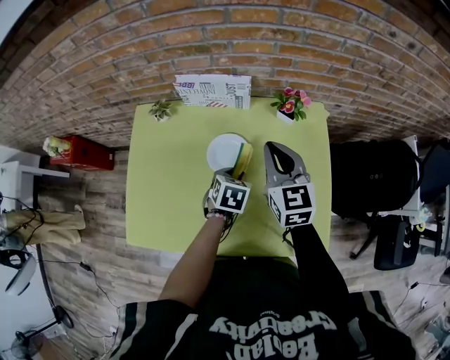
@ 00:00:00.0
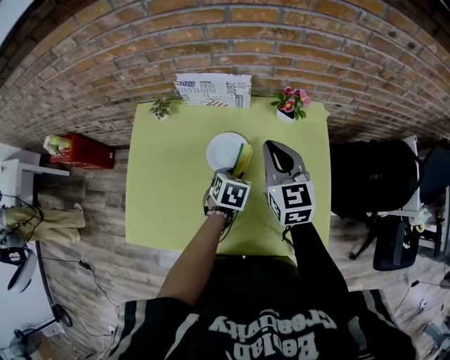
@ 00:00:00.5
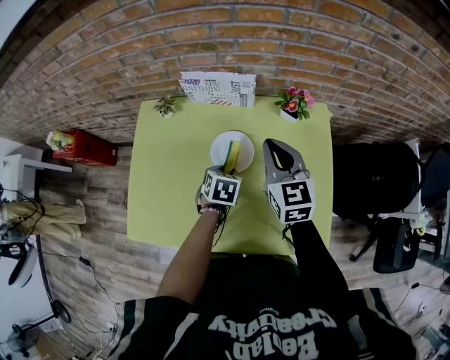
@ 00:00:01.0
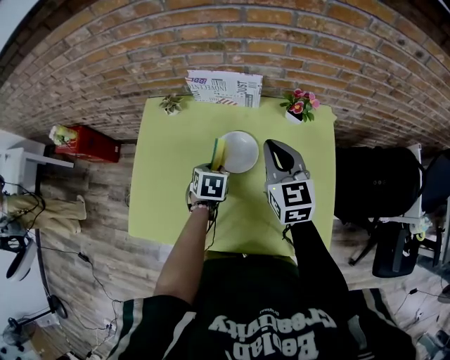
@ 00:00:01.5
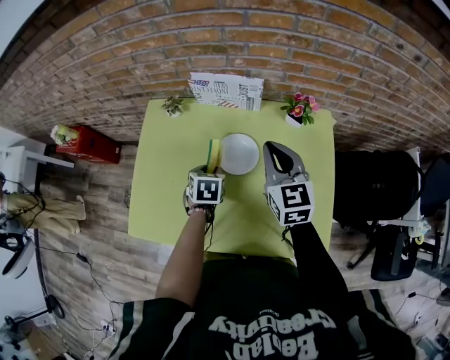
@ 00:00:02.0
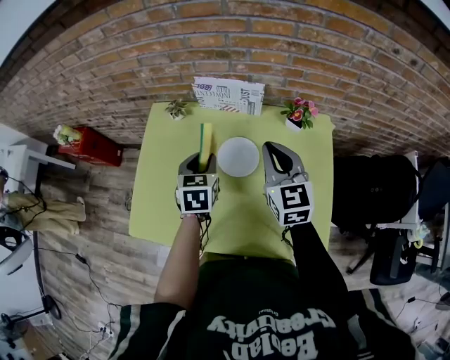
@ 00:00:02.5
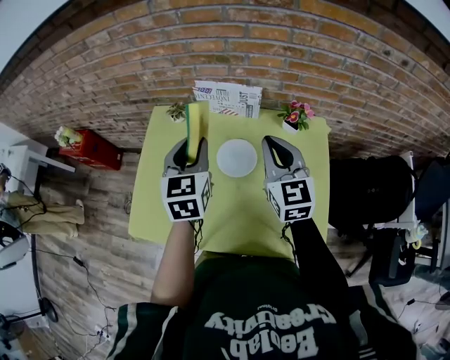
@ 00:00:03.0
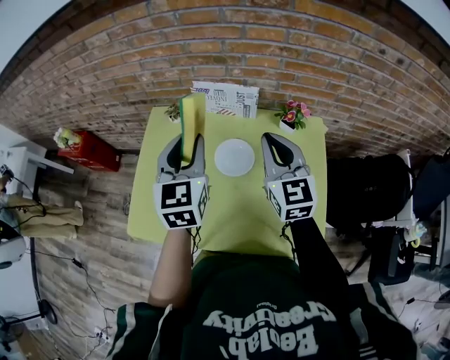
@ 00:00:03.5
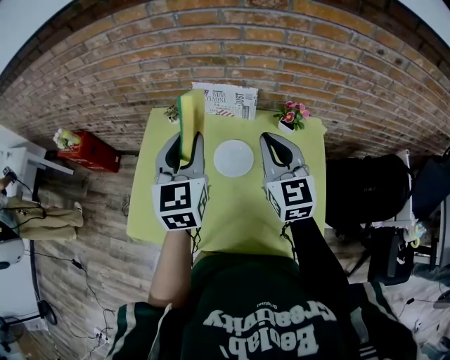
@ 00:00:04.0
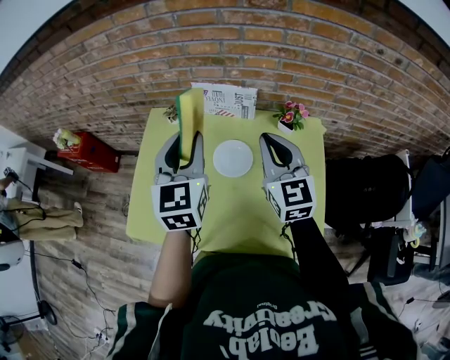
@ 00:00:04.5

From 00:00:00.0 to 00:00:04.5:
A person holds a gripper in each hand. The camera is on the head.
From 00:00:00.0 to 00:00:02.0: The left gripper shifts about 10 cm to the left.
From 00:00:02.0 to 00:00:04.5: The left gripper goes approximately 30 cm upward, and angles its fingers upward, by roughly 50 degrees. The right gripper heads upward, covering approximately 10 cm.

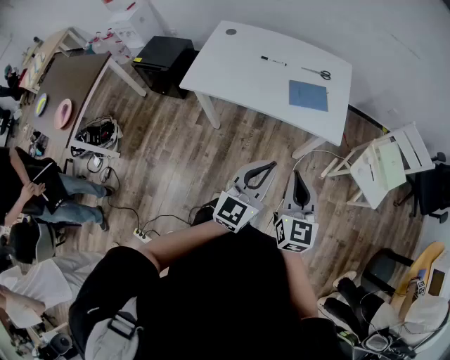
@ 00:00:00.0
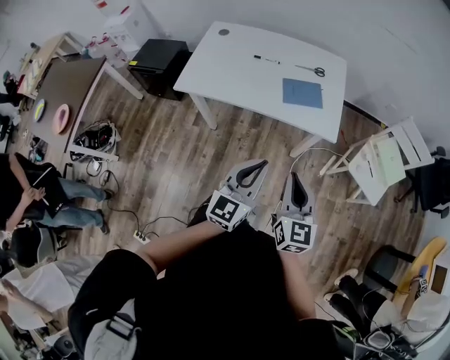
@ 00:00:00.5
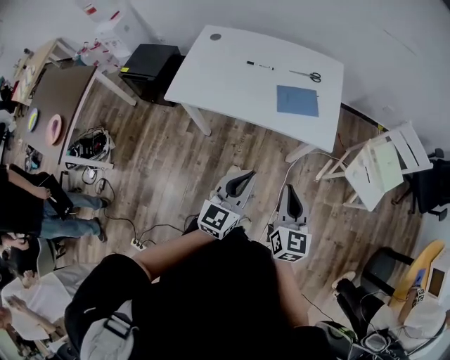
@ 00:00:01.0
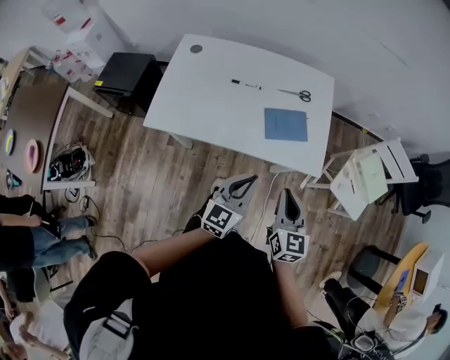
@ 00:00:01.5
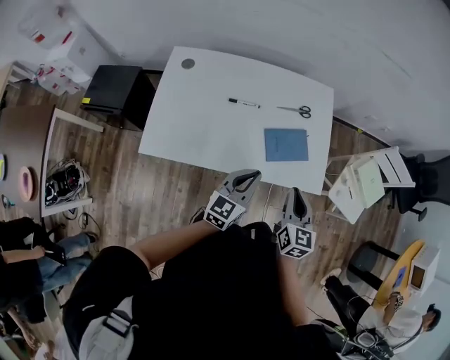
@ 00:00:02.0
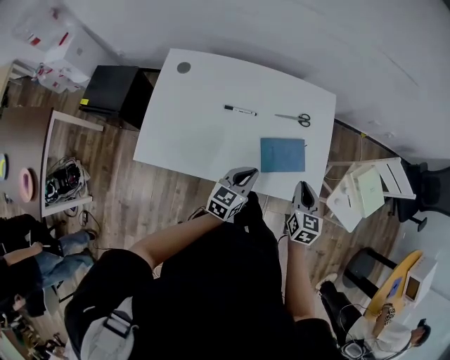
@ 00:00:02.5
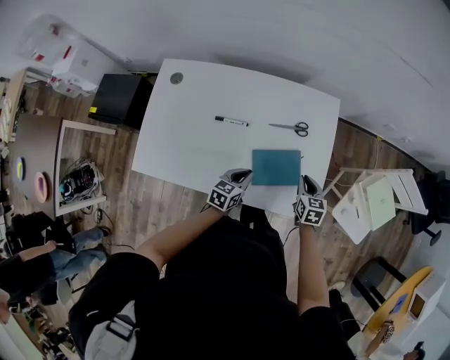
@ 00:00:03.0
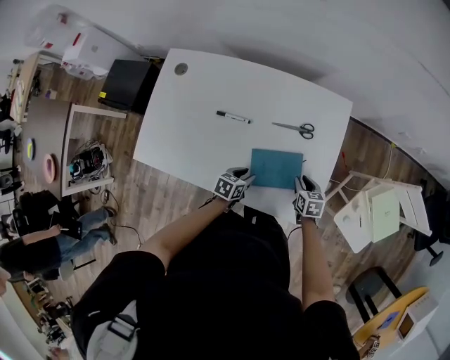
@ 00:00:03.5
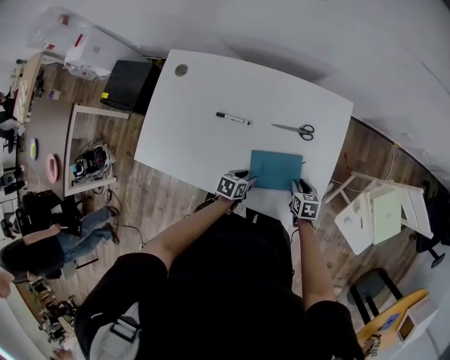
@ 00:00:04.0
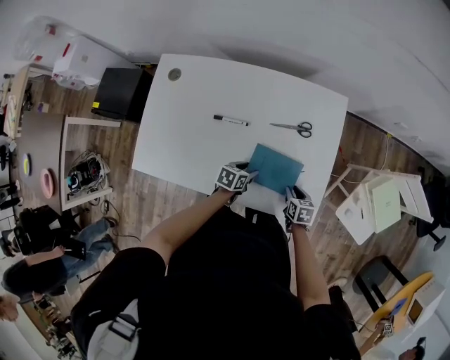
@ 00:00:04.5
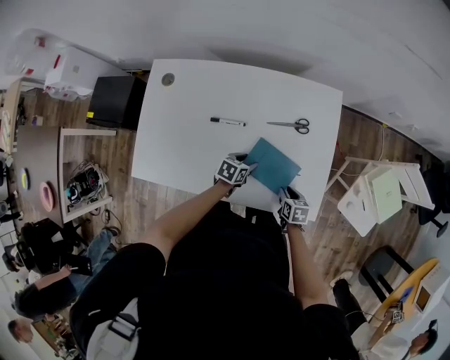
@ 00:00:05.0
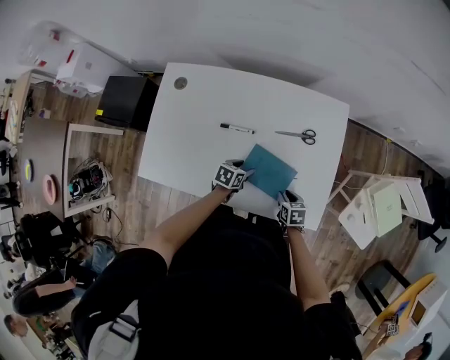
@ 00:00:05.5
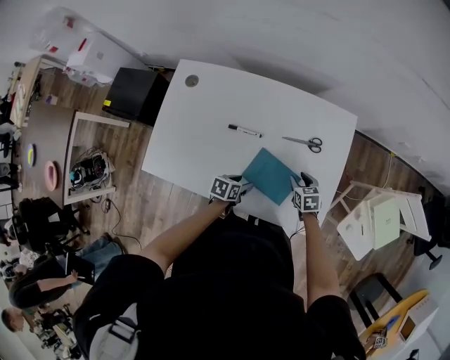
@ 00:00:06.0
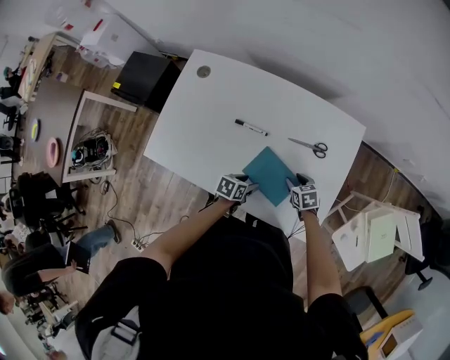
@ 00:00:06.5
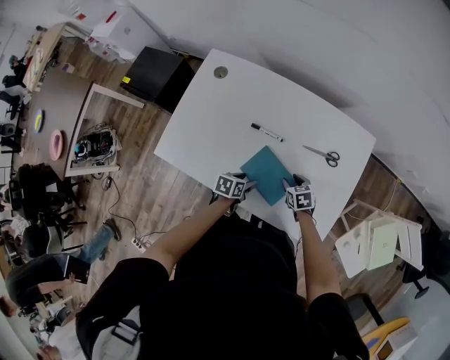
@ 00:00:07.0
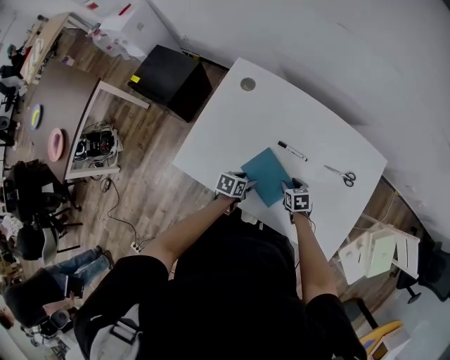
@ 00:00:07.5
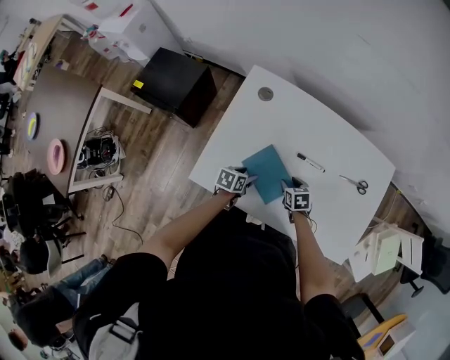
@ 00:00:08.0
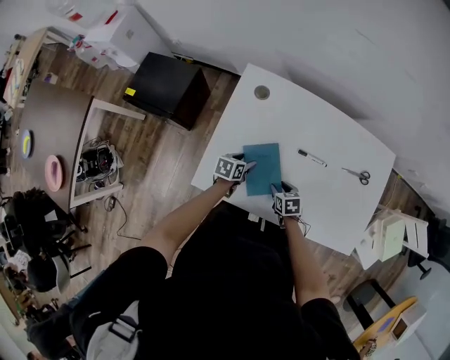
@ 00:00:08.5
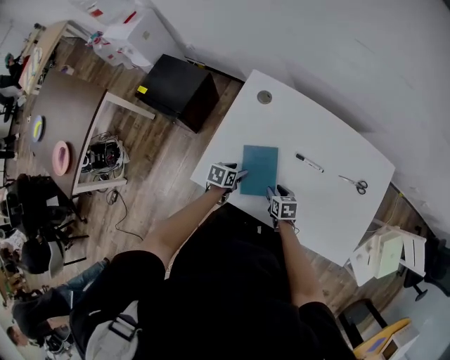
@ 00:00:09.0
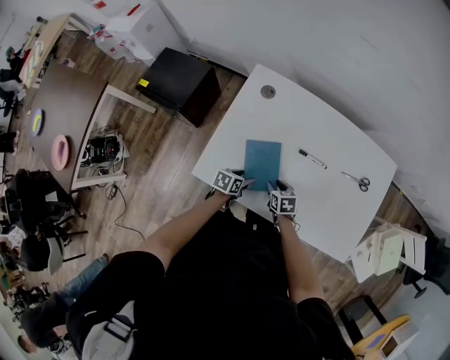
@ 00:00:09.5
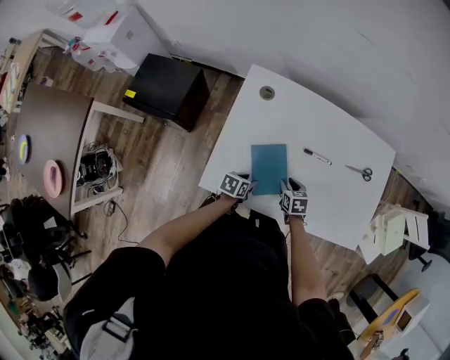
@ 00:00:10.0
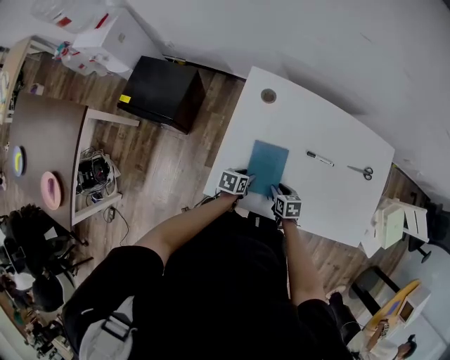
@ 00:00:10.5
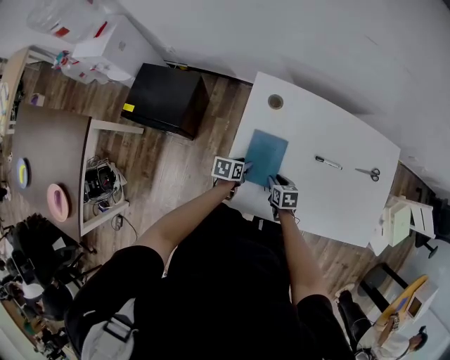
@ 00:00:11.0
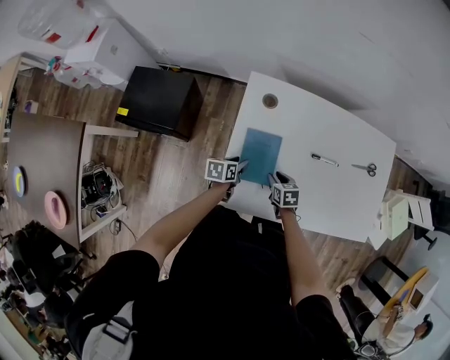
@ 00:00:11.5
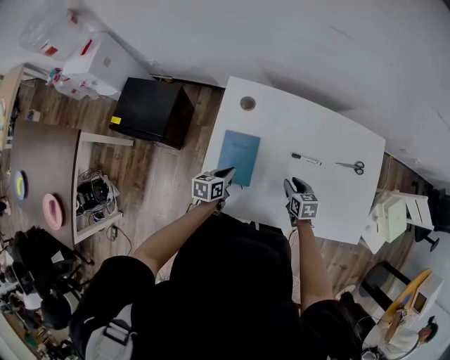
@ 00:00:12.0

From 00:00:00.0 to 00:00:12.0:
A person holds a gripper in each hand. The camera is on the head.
From 00:00:00.0 to 00:00:02.0: The grippers both shift forward by about 30 cm.
From 00:00:02.0 to 00:00:04.0: Both grippers travel together downward and forward, some 35 cm. The right gripper tilts its fingers about 30 degrees downward, while the left gripper points its fingers about 40 degrees further downward, and opens.
From 00:00:04.0 to 00:00:06.0: Both grippers travel together to the left, roughly 5 cm.
From 00:00:06.0 to 00:00:08.0: Both grippers travel together to the left, roughly 30 cm.
From 00:00:08.0 to 00:00:10.0: The right gripper ends up roughly 5 cm from where it was.
From 00:00:10.0 to 00:00:12.0: The left gripper heads to the left and forward, covering roughly 10 cm, and closes its fingers; the right gripper heads upward, covering about 5 cm, and travels to the left and back again, some 10 cm each way.

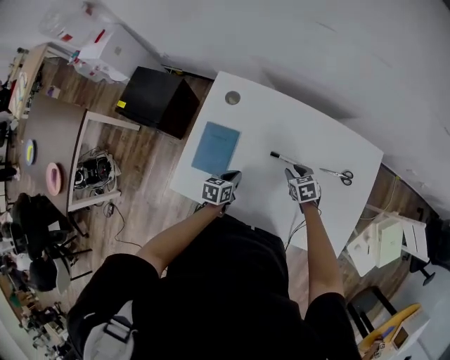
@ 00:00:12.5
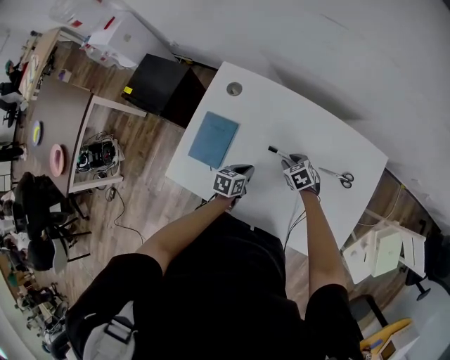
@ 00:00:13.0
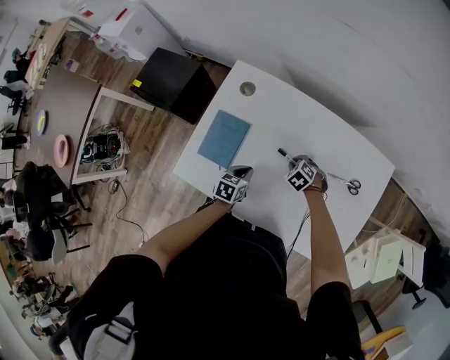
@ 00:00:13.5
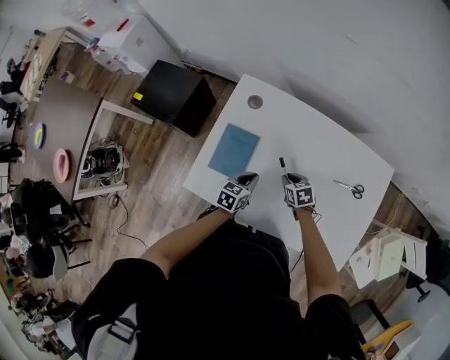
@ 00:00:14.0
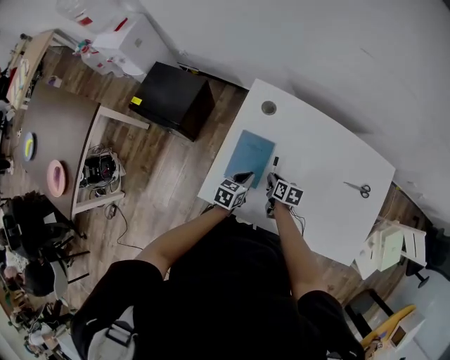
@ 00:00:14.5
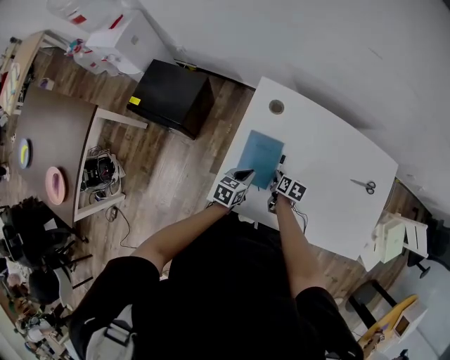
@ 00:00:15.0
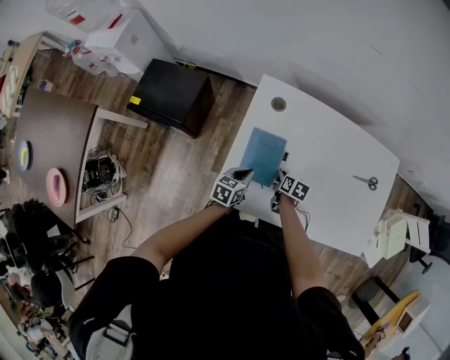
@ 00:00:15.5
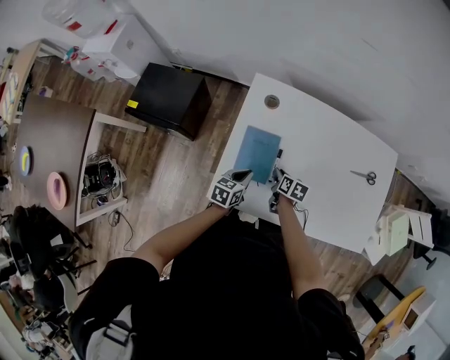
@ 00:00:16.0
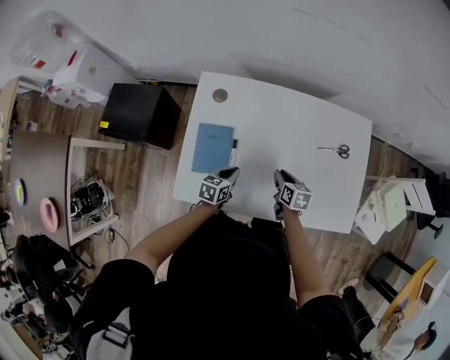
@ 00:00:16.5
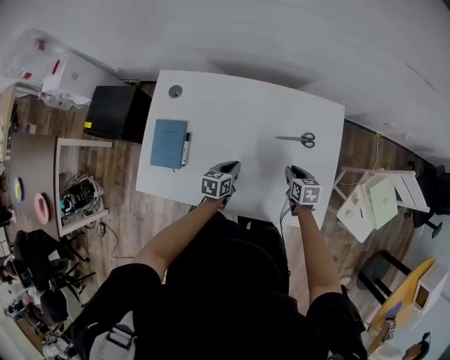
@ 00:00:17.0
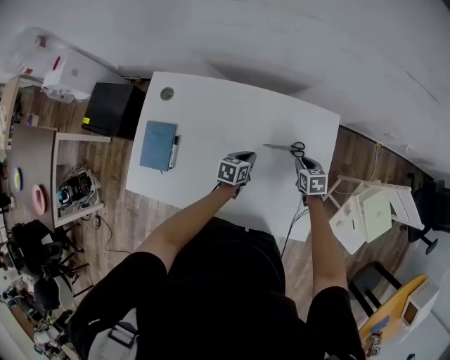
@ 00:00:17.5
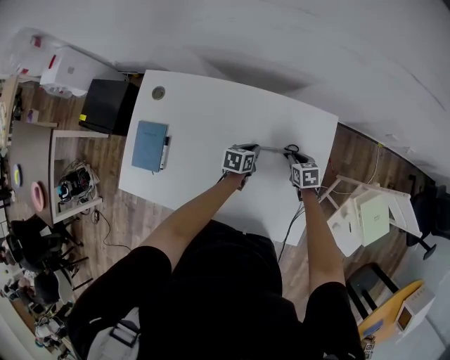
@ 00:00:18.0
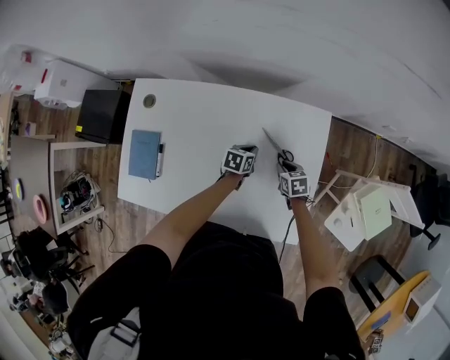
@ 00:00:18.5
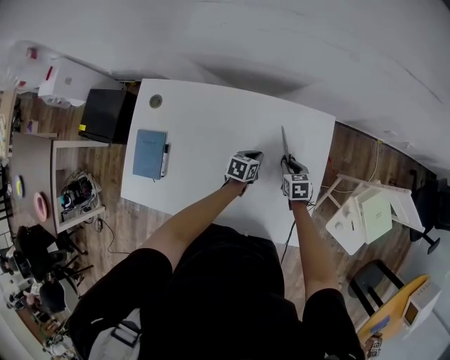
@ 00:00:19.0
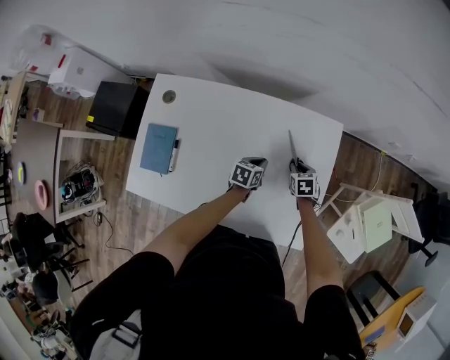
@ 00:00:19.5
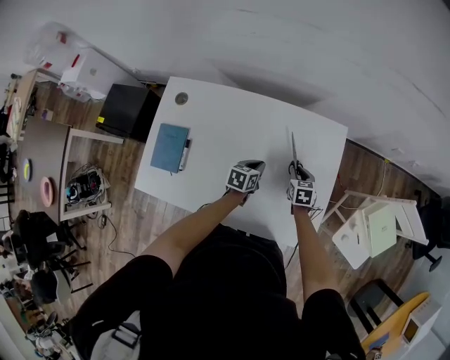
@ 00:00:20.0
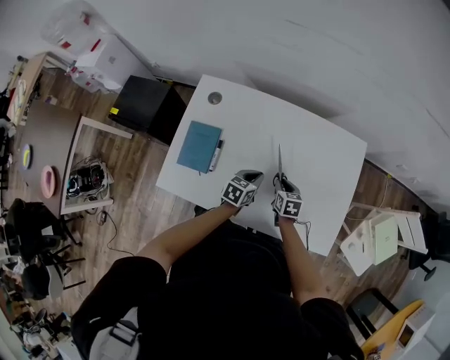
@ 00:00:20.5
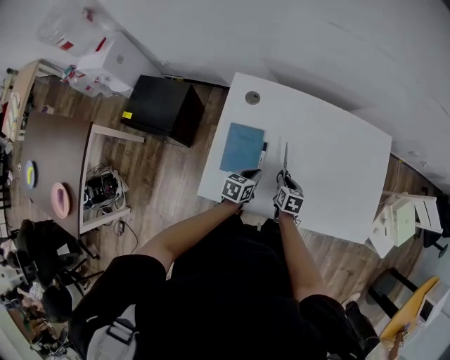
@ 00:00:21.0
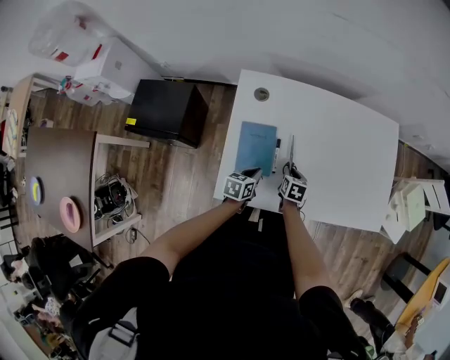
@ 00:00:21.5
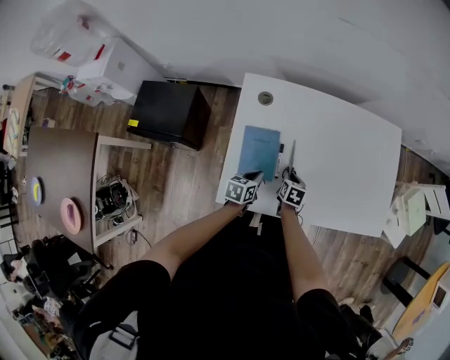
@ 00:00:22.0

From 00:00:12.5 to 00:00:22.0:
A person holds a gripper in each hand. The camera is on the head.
From 00:00:12.5 to 00:00:14.5: The right gripper moves to the left, about 20 cm, and rotates some 40 degrees. Meanwhile the left gripper is displaced to the left by some 10 cm.
From 00:00:14.5 to 00:00:16.5: The left gripper moves to the right, some 10 cm. The right gripper travels to the right by approximately 15 cm.
From 00:00:16.5 to 00:00:18.0: Both grippers move to the right and forward, approximately 35 cm. The right gripper changes its angle by approximately 30 degrees.
From 00:00:18.0 to 00:00:20.0: The right gripper moves about 5 cm, while the left gripper heads backward, covering roughly 5 cm.
From 00:00:20.0 to 00:00:22.0: Both grippers are carried to the left and backward, some 40 cm. The right gripper rotates some 20 degrees.
